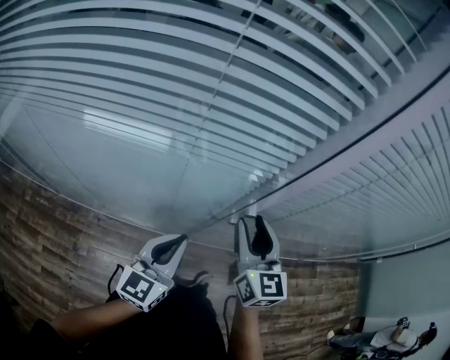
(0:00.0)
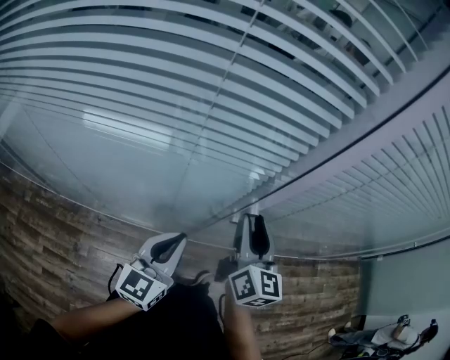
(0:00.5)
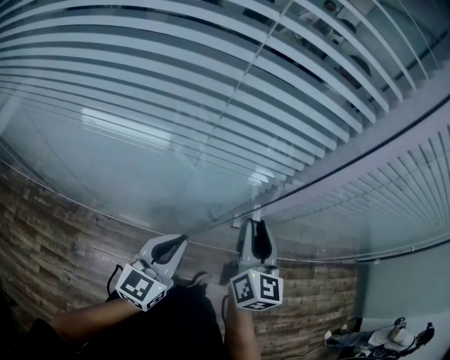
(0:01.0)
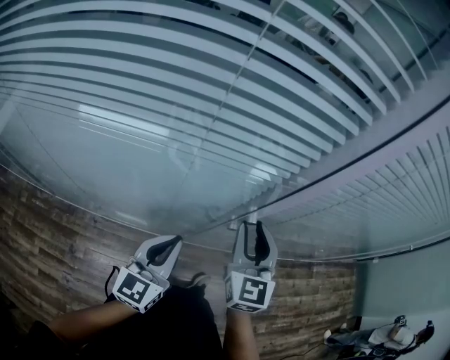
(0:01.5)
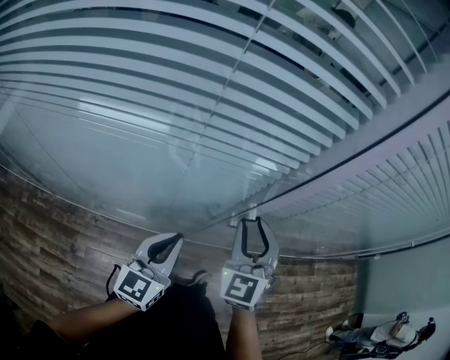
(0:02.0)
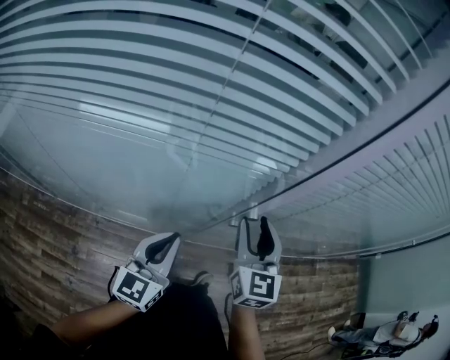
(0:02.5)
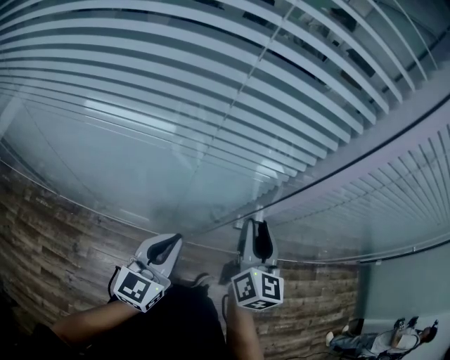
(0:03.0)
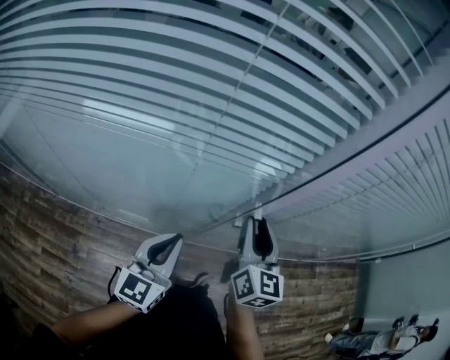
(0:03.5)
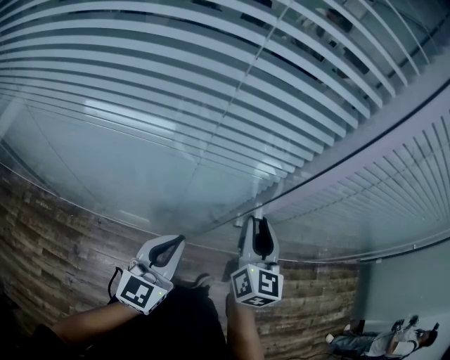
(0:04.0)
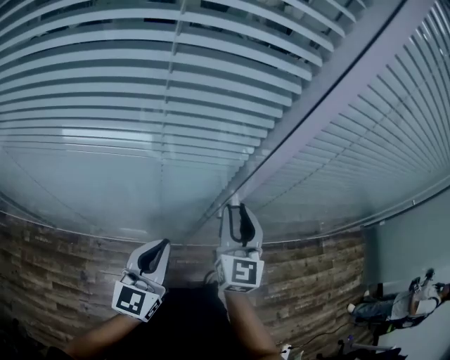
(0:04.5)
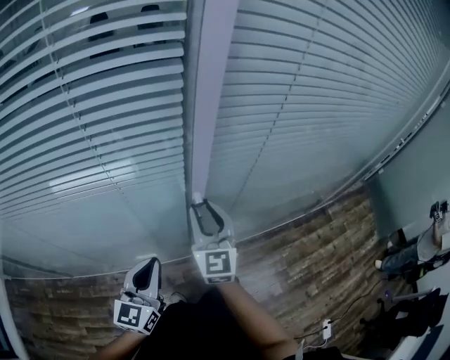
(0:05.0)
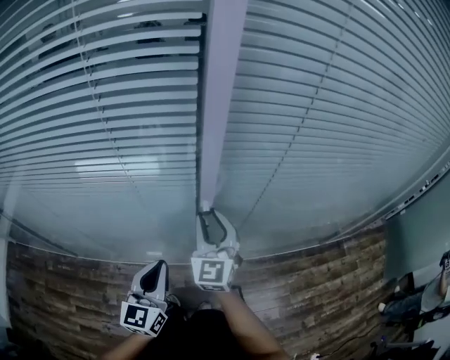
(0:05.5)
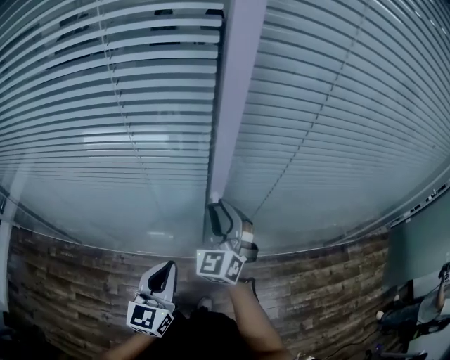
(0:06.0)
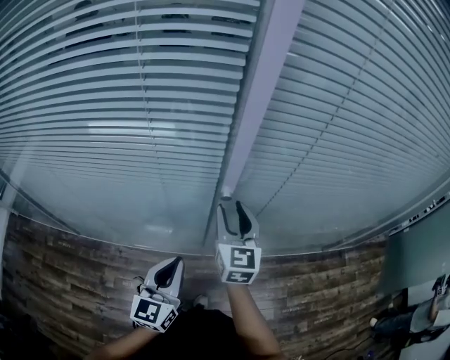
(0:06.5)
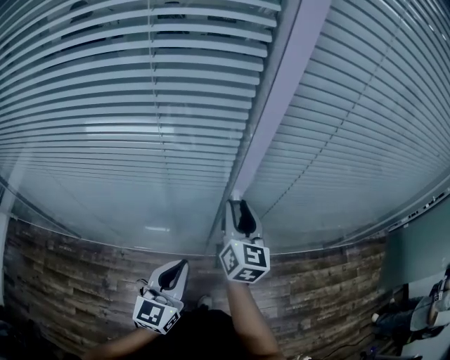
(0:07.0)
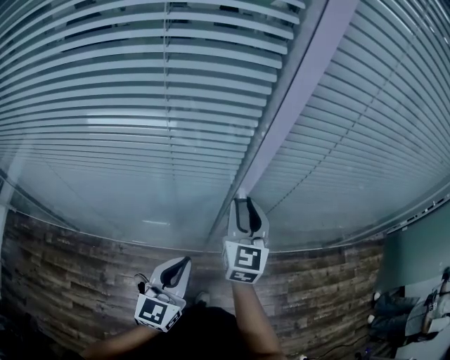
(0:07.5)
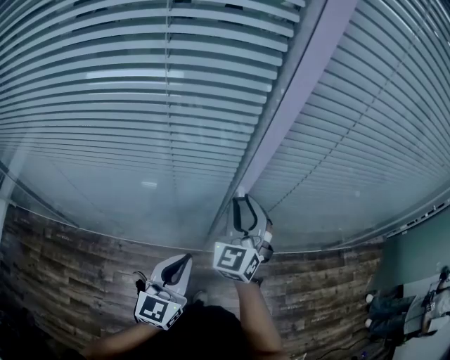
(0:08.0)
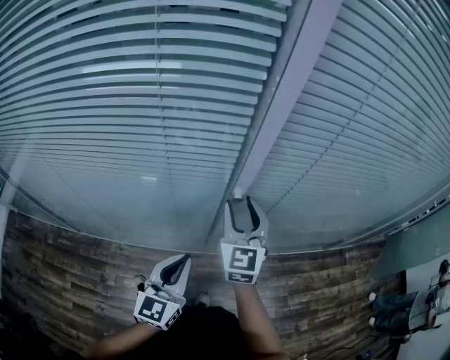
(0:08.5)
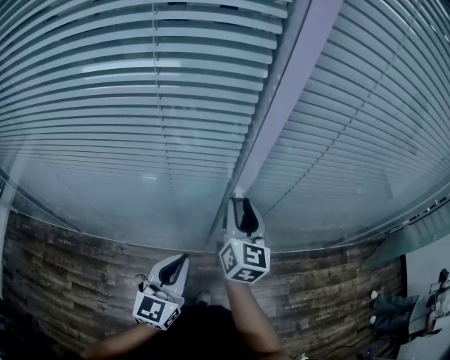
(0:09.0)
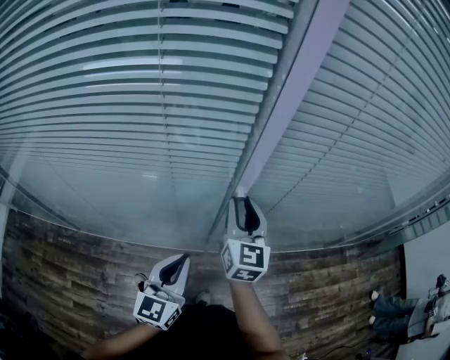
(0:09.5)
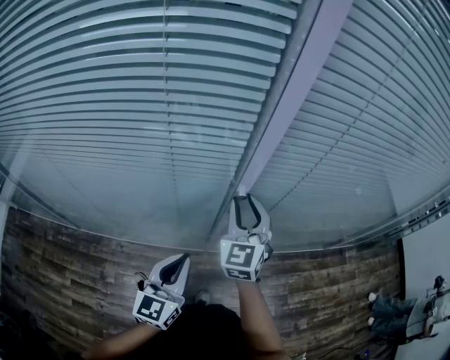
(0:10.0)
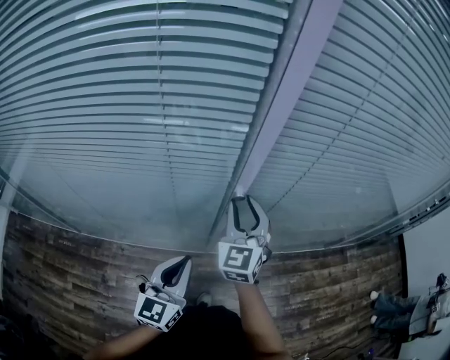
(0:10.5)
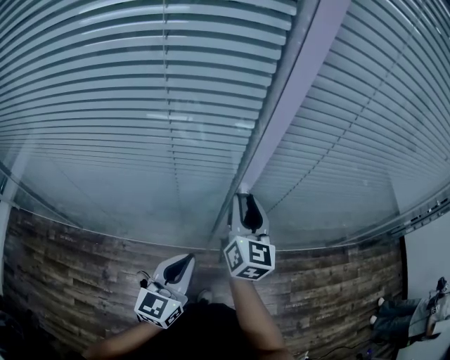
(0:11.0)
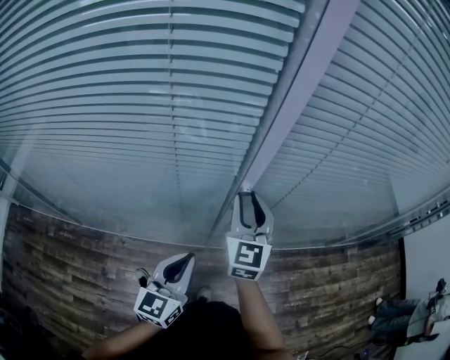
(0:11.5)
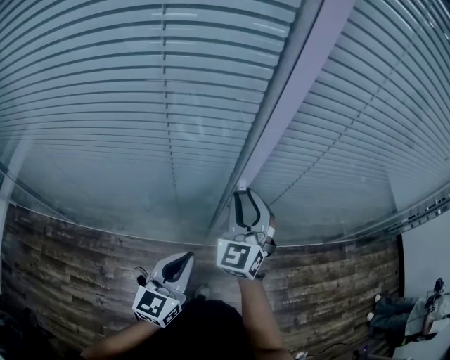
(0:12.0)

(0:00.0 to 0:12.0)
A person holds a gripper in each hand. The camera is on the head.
0:00.0 - 0:02.0: The right gripper changes its angle by roughly 40 degrees.
0:02.0 - 0:04.0: The right gripper twists some 40 degrees clockwise, seen from behind.
0:04.0 - 0:06.0: The left gripper moves backward and to the right, approximately 10 cm; the right gripper rolls counterclockwise, seen from behind, by approximately 40 degrees.

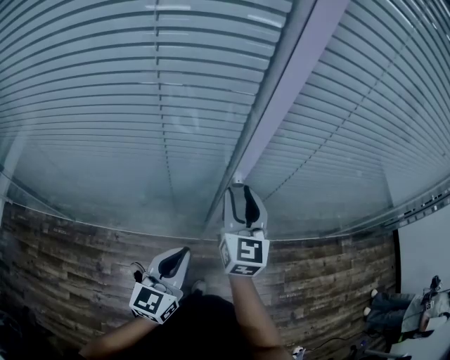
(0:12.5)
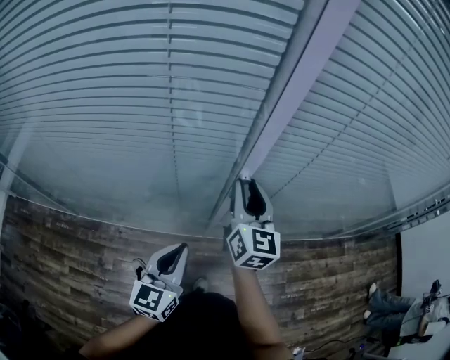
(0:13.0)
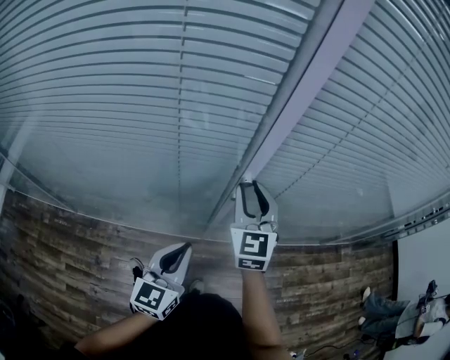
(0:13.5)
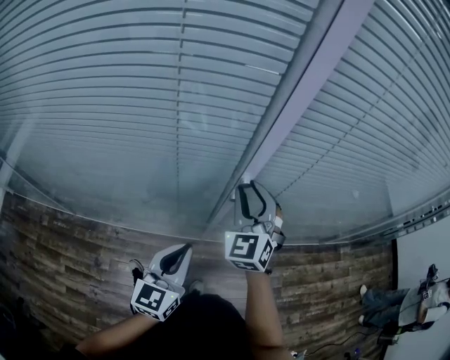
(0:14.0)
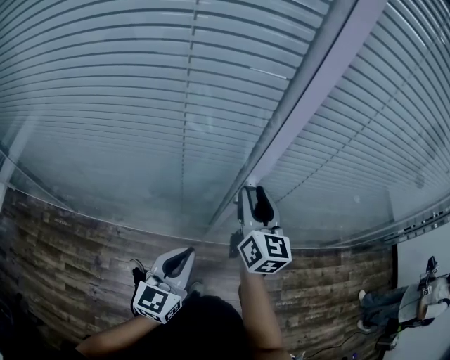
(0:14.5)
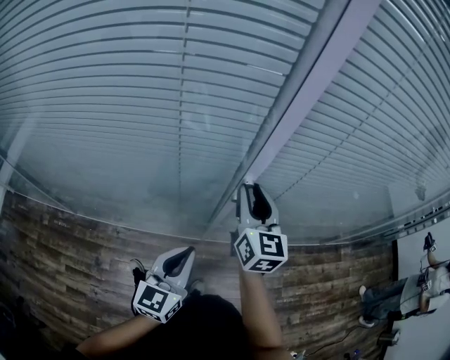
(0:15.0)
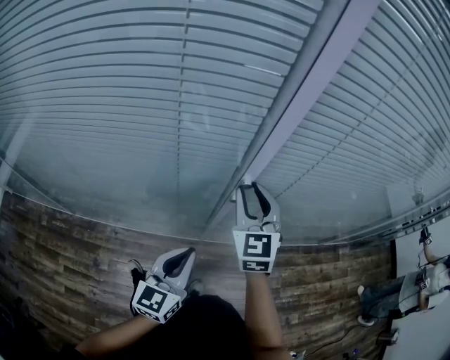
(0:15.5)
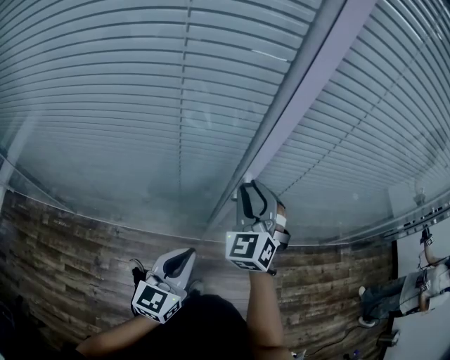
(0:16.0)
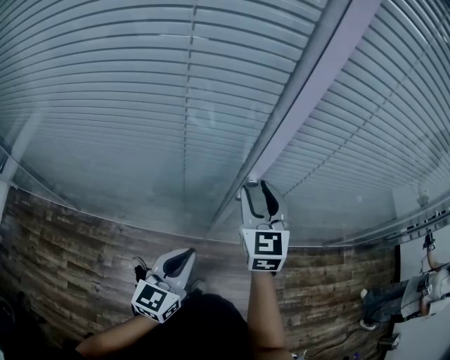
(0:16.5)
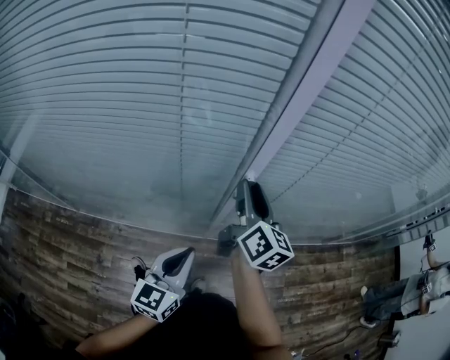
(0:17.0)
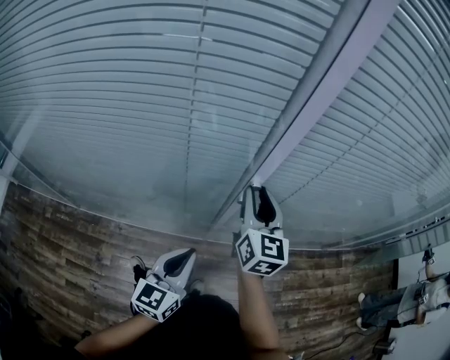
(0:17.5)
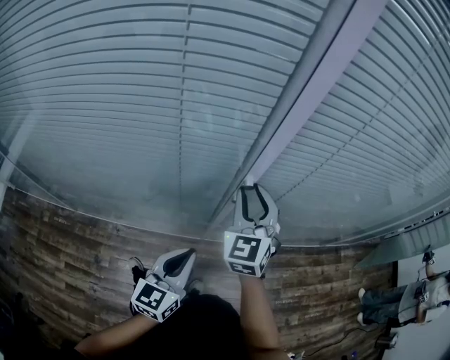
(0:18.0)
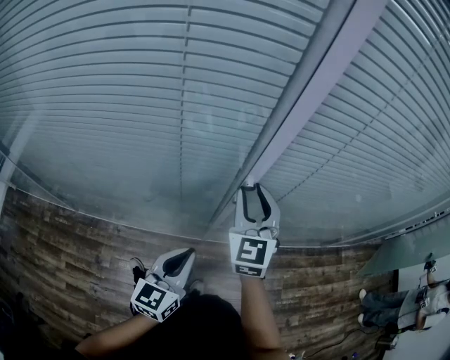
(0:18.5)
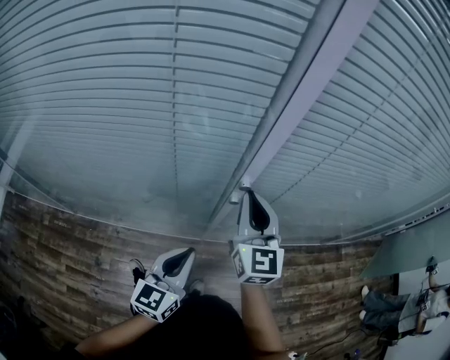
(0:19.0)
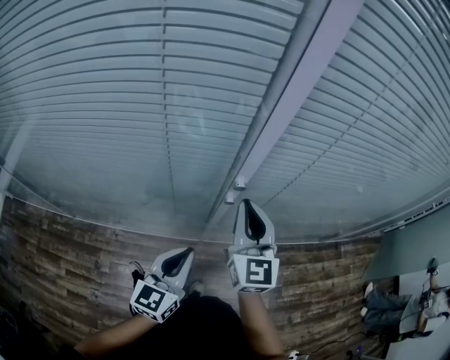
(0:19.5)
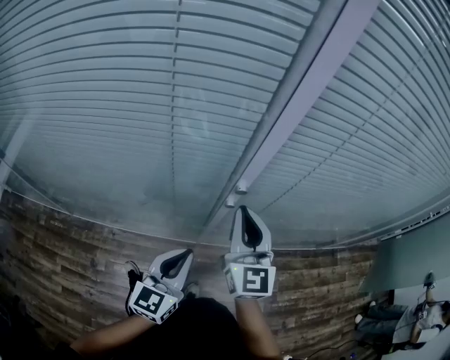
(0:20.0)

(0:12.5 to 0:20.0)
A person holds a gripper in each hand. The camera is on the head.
0:14.5 - 0:16.5: The right gripper turns by about 30 degrees.
0:18.0 - 0:20.0: The right gripper turns by about 30 degrees, and closes.

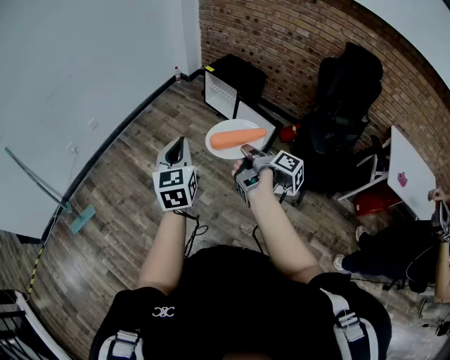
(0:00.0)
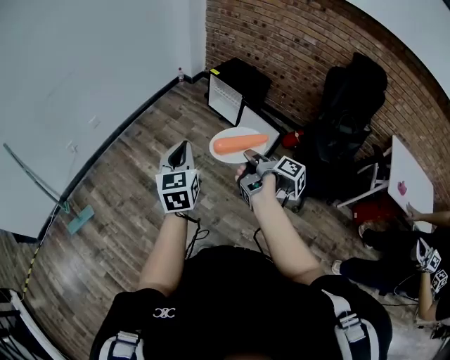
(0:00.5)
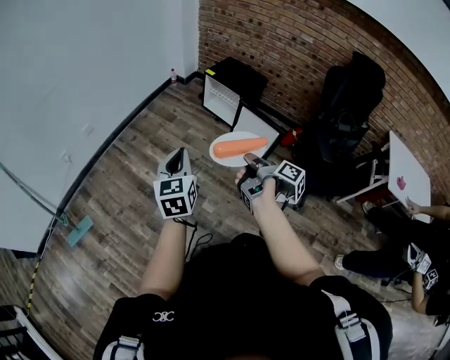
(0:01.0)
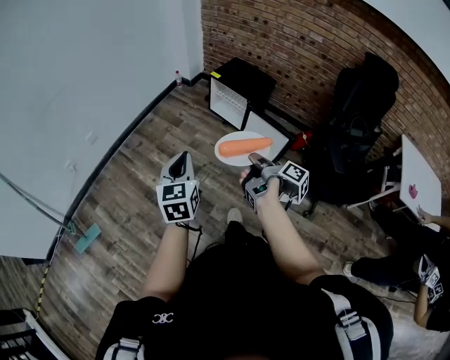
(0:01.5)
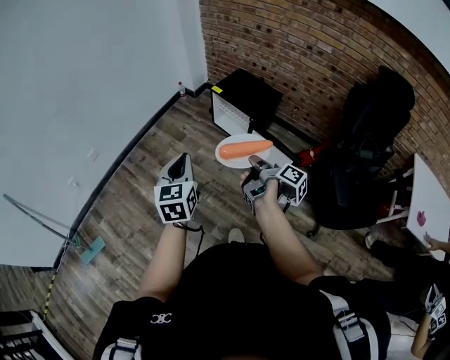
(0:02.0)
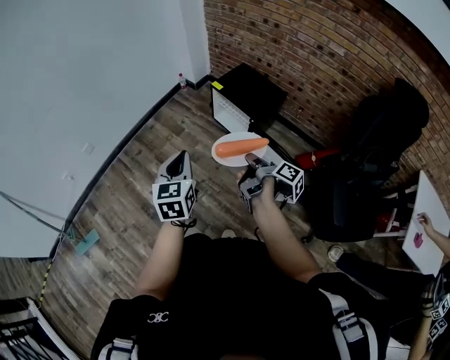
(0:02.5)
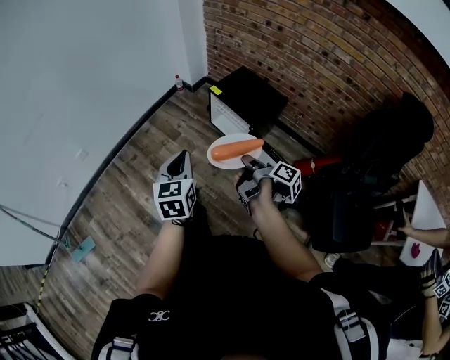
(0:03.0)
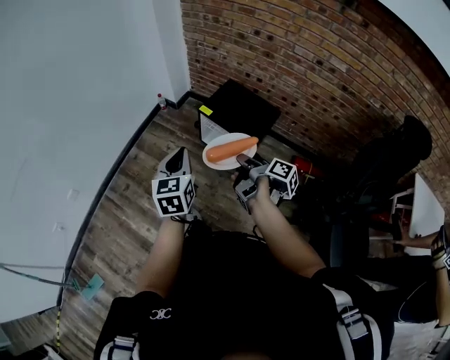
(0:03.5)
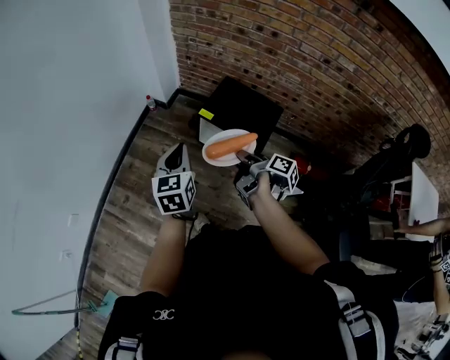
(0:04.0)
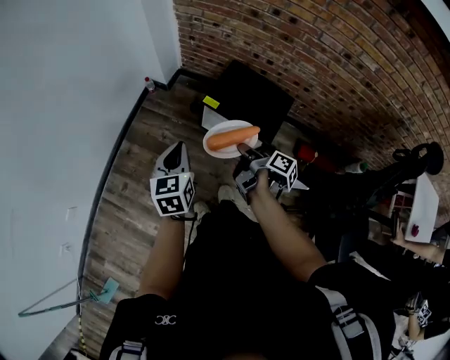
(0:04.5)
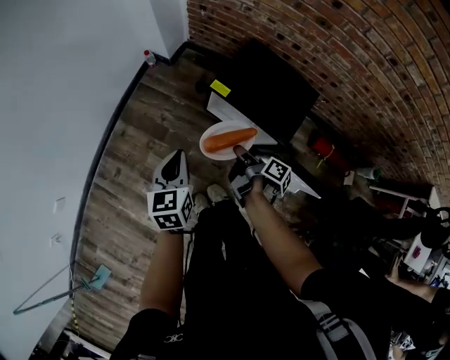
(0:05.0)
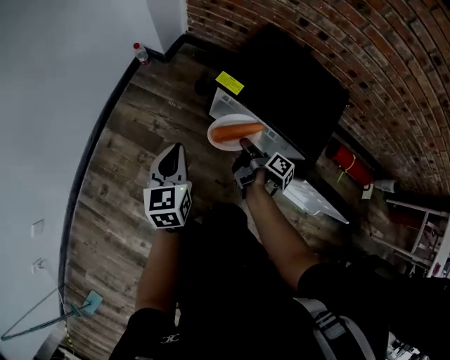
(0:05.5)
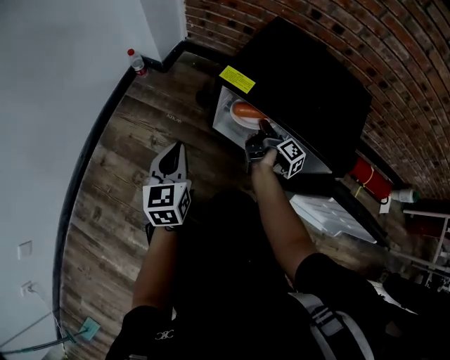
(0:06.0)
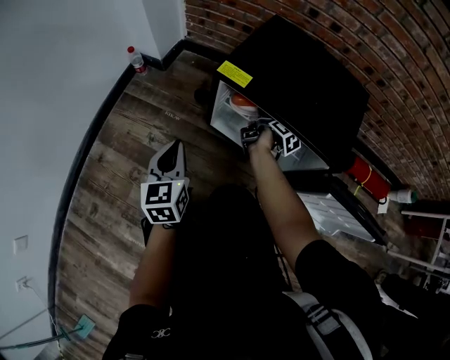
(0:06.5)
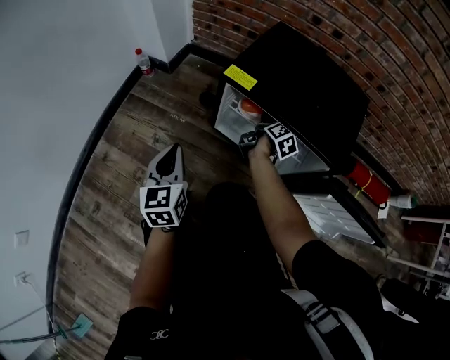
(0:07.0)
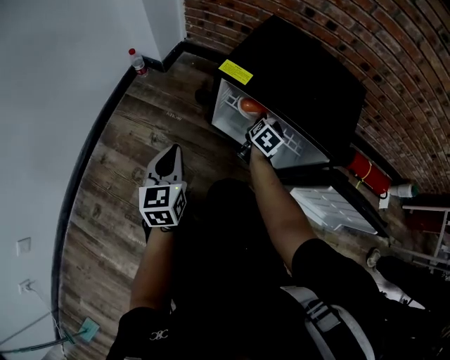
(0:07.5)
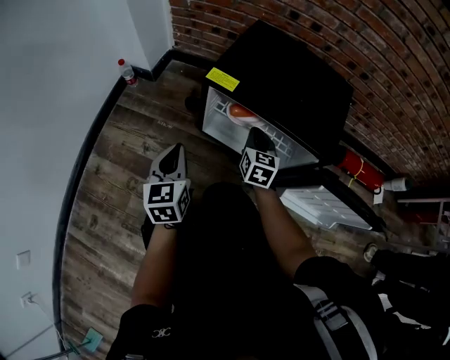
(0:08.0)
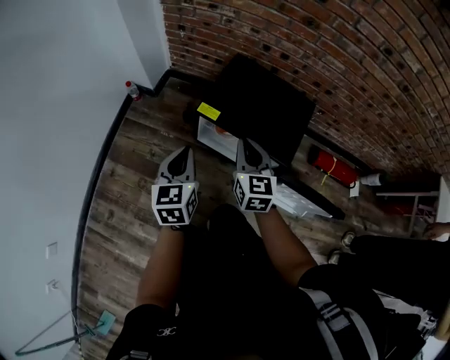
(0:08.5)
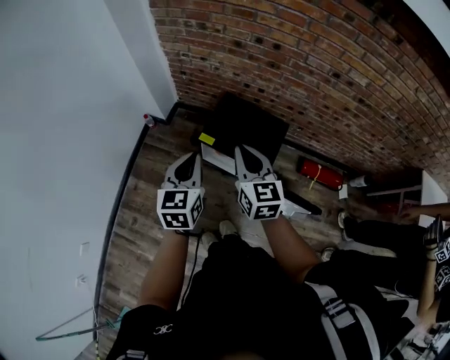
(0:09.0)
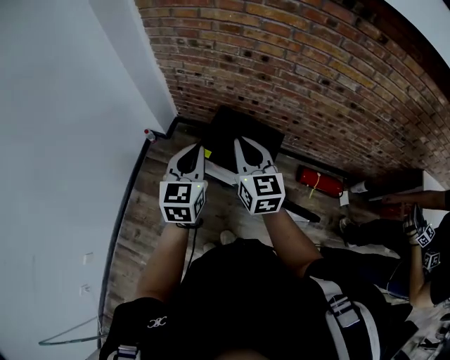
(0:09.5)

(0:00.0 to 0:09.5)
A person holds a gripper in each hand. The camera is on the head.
0:00.0 - 0:02.0: The left gripper moves approximately 25 cm.
0:02.0 - 0:04.0: The left gripper ends up about 50 cm from where it was.
0:04.0 - 0:05.5: The left gripper goes some 40 cm downward.
0:05.5 - 0:07.5: The left gripper heads downward, covering approximately 10 cm.
0:07.5 - 0:09.5: The left gripper goes about 60 cm upward.
